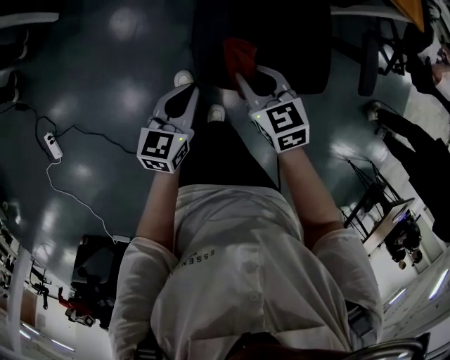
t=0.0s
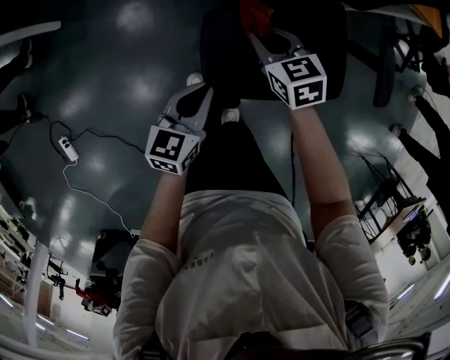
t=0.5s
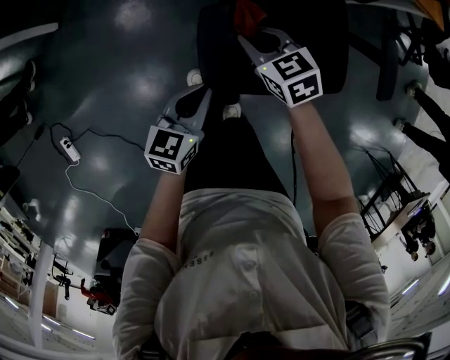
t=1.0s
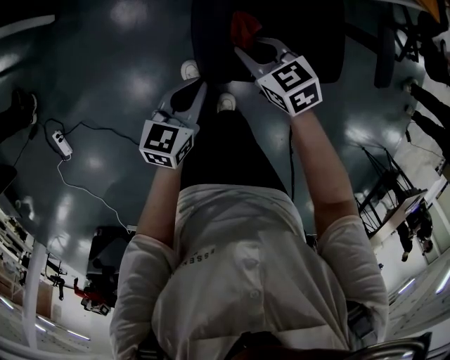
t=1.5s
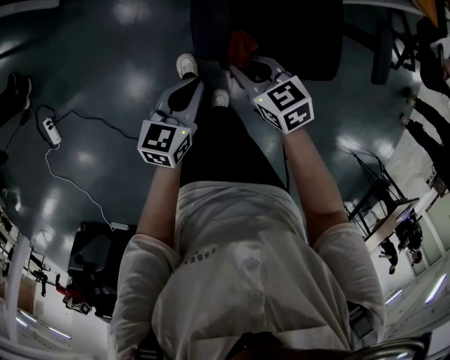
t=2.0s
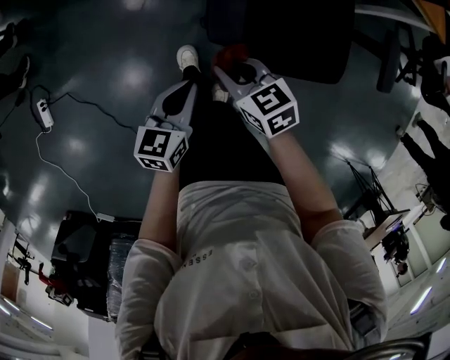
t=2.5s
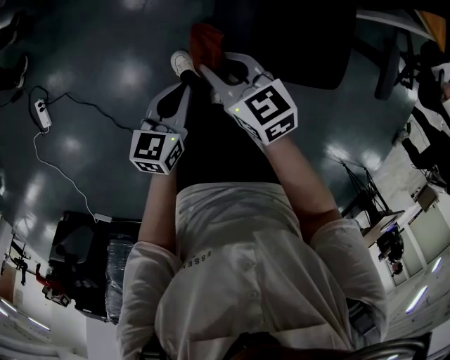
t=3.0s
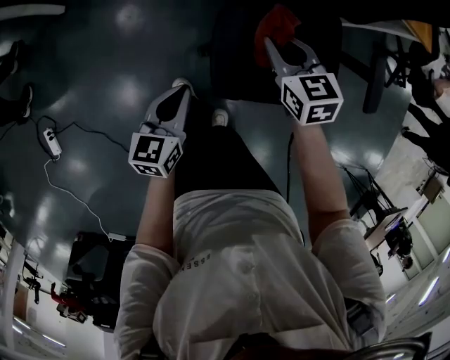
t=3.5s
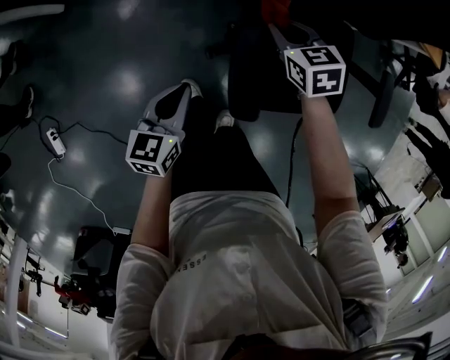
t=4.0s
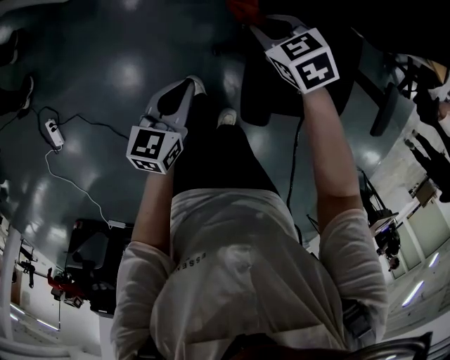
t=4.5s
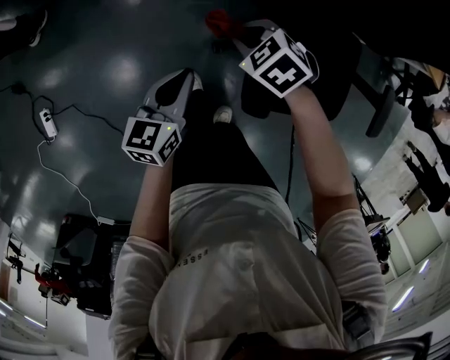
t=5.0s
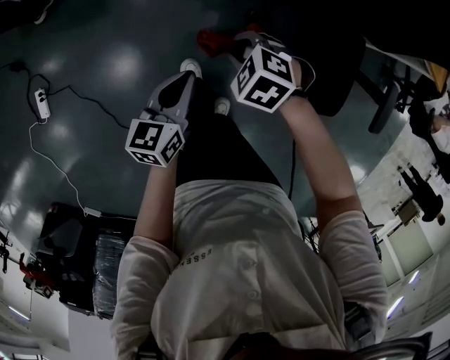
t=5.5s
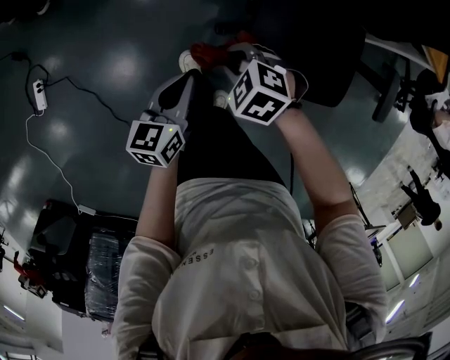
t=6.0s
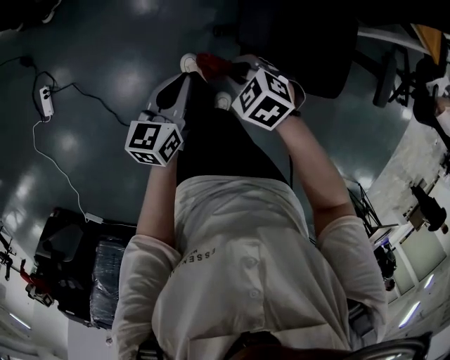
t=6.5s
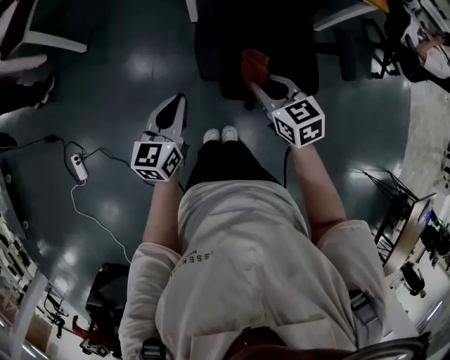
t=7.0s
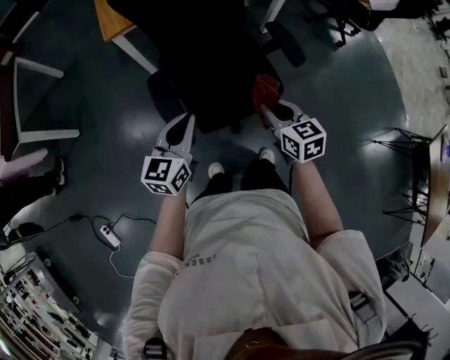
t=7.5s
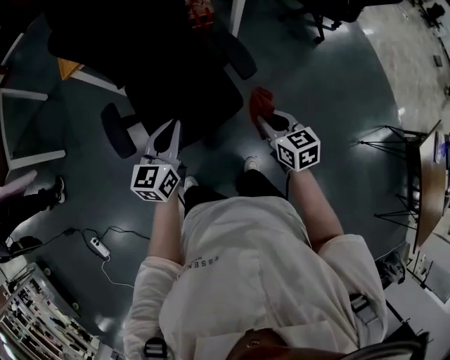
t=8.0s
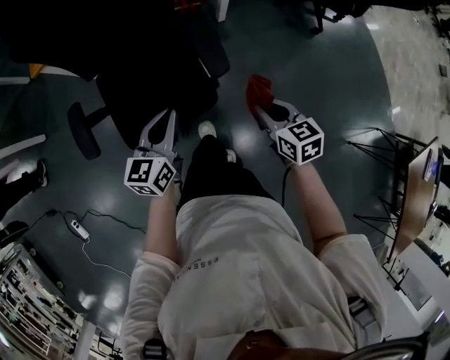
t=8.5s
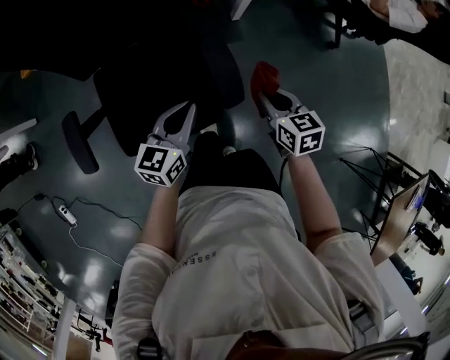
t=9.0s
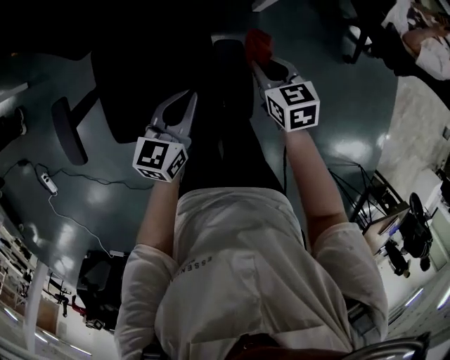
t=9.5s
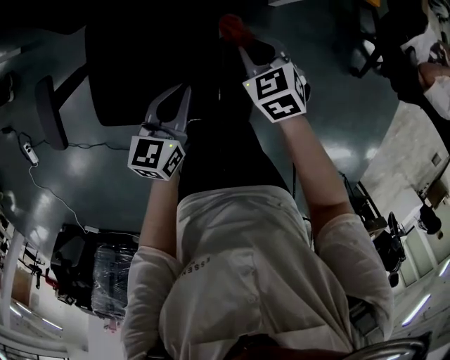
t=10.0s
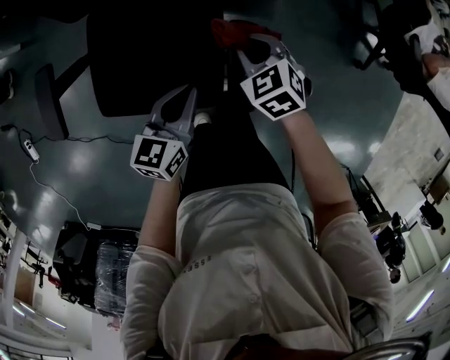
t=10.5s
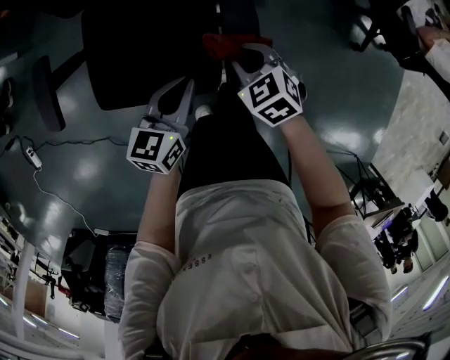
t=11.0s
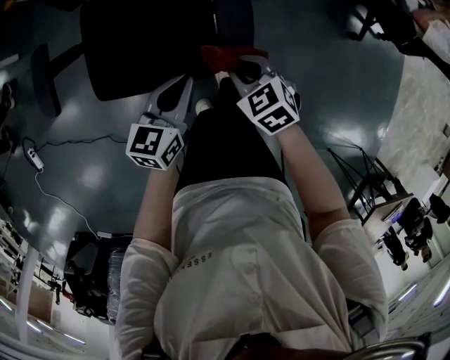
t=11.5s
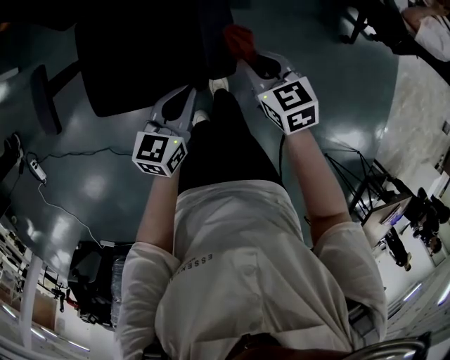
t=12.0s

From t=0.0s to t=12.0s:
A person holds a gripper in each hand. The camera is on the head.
From t=0.0s to t=2.0s: The left gripper heads backward, covering about 5 cm; the right gripper travels downward by approximately 5 cm, and travels forward and back again, about 15 cm each way.
From t=2.0s to t=4.0s: The right gripper heads forward, covering approximately 25 cm. Meanwhile the left gripper shifts roughly 15 cm forward and to the left.
From t=4.0s to t=6.0s: The left gripper changes place by about 15 cm. The right gripper changes place by roughly 30 cm, and rolls counterclockwise, seen from behind, by some 50 degrees.
From t=6.0s to t=8.0s: The right gripper shifts by about 60 cm, and tips its fingers upward by about 30 degrees. Meanwhile the left gripper ends up about 40 cm from where it was, and changes its angle by roughly 40 degrees.
From t=8.0s to t=10.0s: The right gripper shifts about 40 cm forward and downward, and rotates around the line of its fingers by roughly 40 degrees, counterclockwise from behind; the left gripper is displaced forward, downward and to the right by roughly 30 cm, and rotates approximately 30 degrees.
From t=10.0s to t=12.0s: The two grippers go approximately 15 cm backward. The right gripper swivels about 20 degrees.

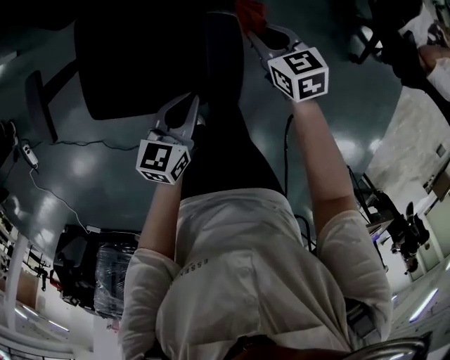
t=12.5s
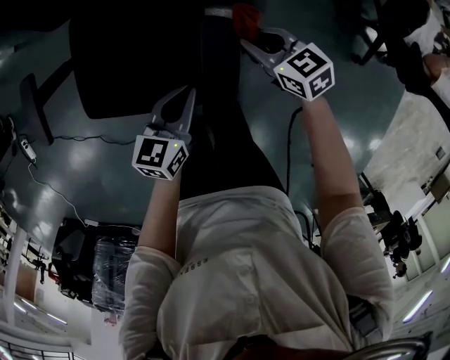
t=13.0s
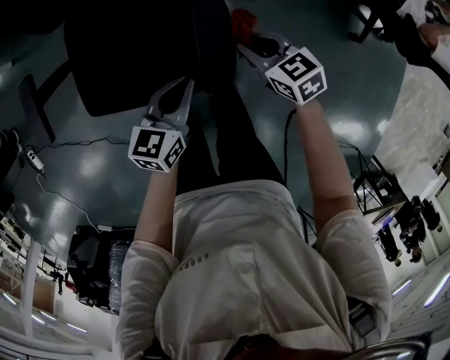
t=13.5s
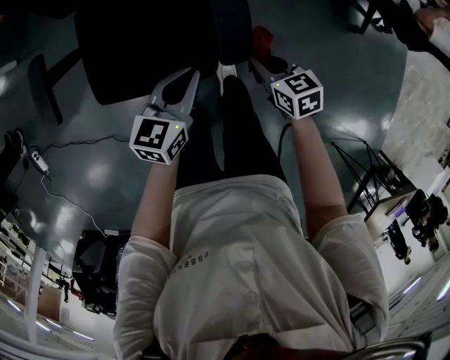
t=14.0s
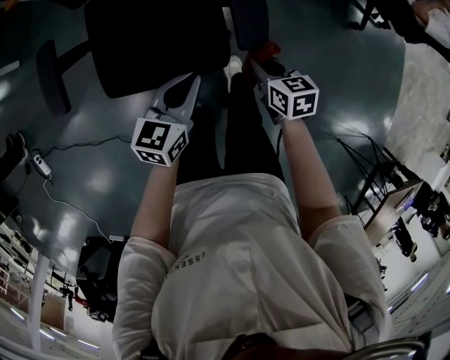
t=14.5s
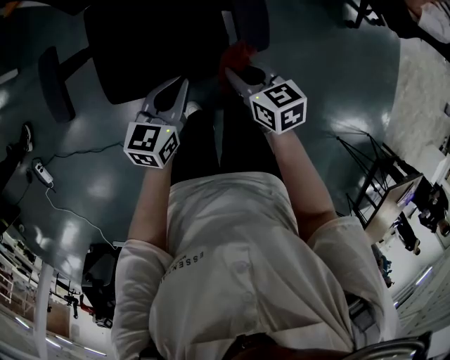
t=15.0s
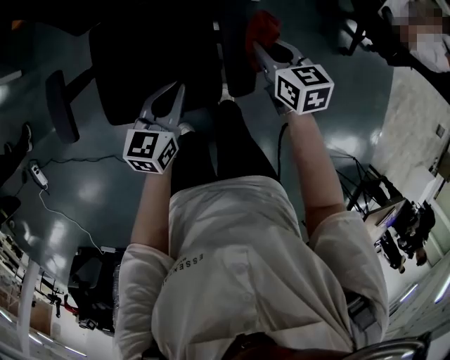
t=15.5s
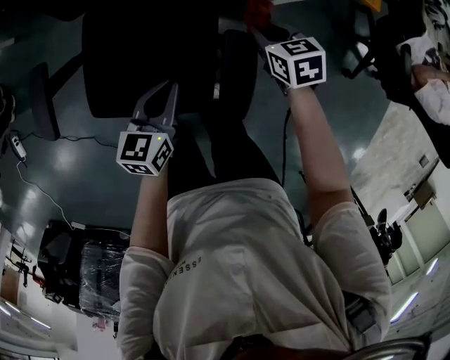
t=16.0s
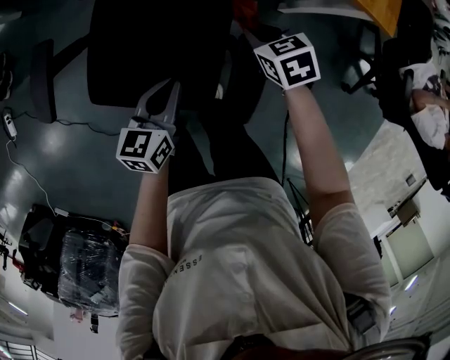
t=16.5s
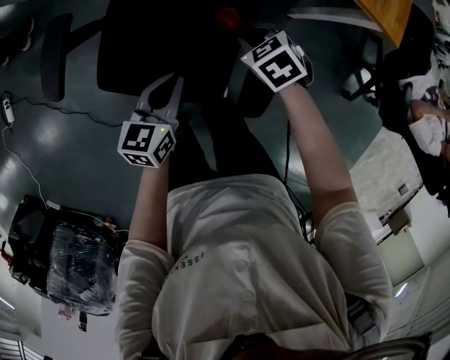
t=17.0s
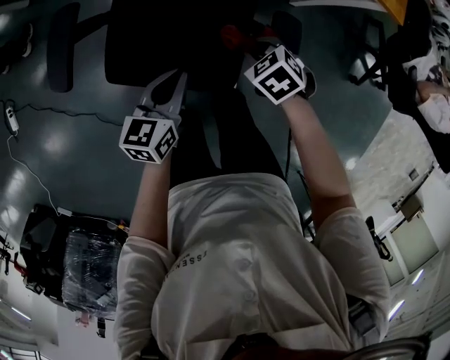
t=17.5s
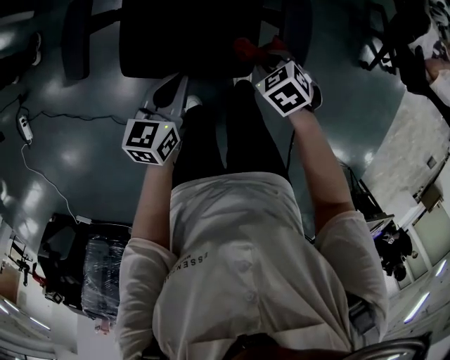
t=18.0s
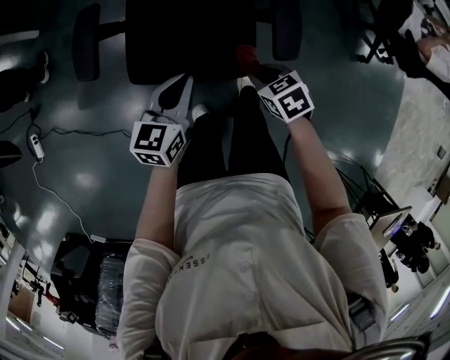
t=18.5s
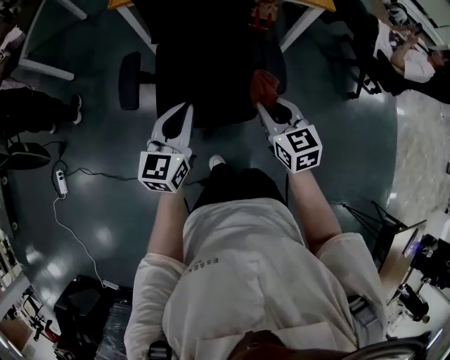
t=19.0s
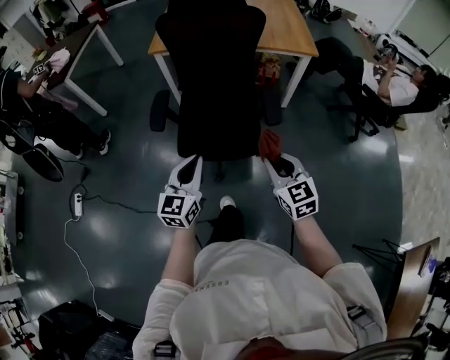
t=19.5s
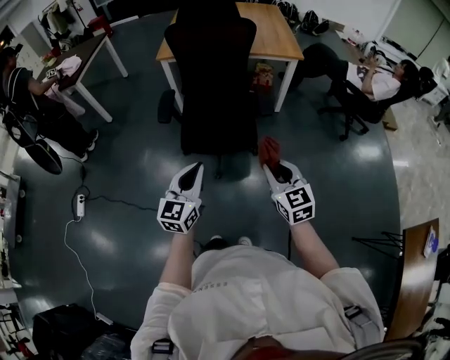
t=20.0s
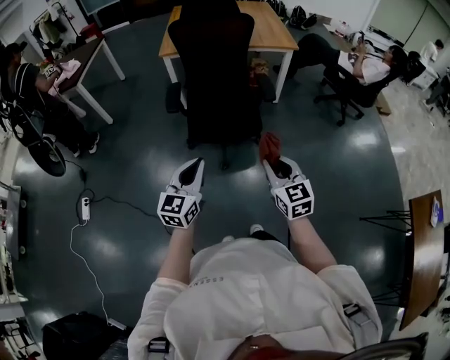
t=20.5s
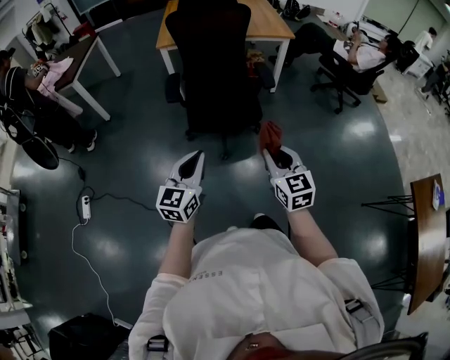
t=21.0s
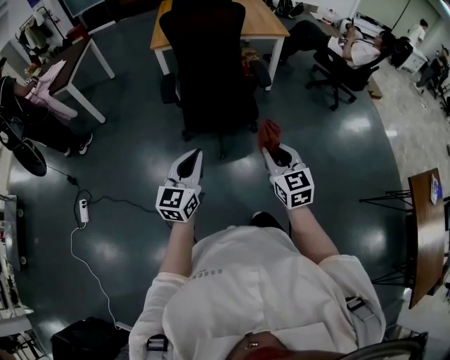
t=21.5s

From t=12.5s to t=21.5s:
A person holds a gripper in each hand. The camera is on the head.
From t=12.5s to t=14.5s: The right gripper goes about 20 cm backward, and turns by about 20 degrees. Meanwhile the left gripper goes approximately 10 cm to the left and backward.
From t=14.5s to t=17.0s: The right gripper goes upward and returns, roughly 10 cm each way, and rolls counterclockwise, seen from behind, by some 50 degrees, while the left gripper shifts by approximately 15 cm, and swivels about 30 degrees.
From t=17.0s to t=19.5s: The left gripper moves backward, upward and to the left, roughly 40 cm, and changes its angle by about 30 degrees, while the right gripper moves backward and upward, approximately 50 cm, and tilts its fingers about 40 degrees upward.
From t=19.5s to t=21.5s: The grippers both shift backward by about 25 cm.

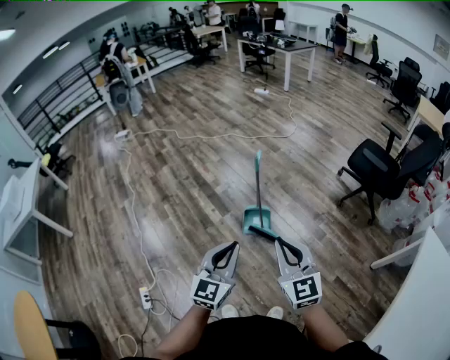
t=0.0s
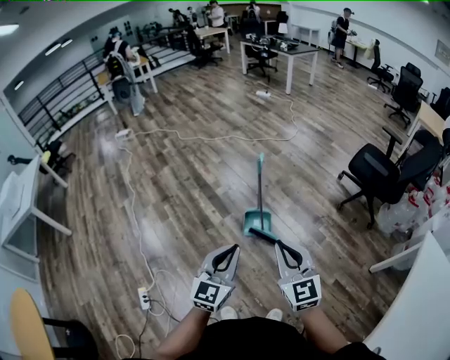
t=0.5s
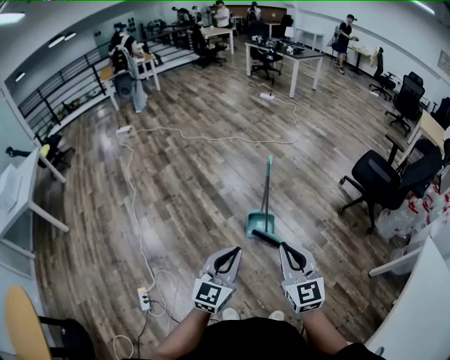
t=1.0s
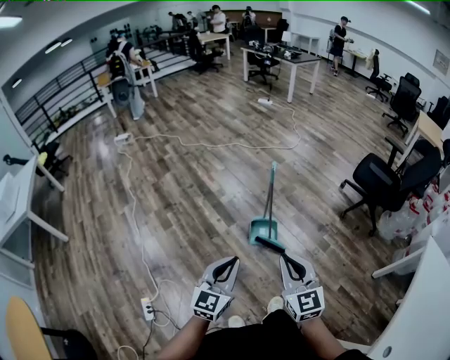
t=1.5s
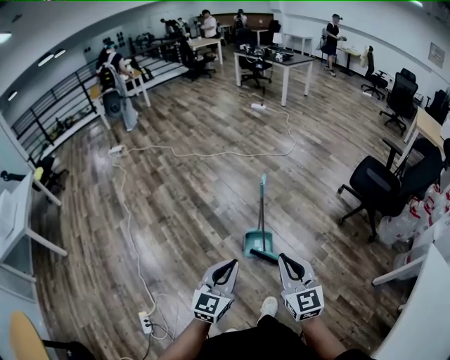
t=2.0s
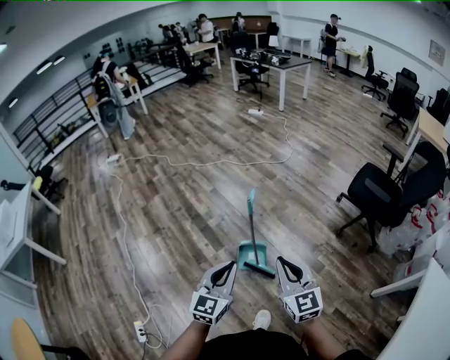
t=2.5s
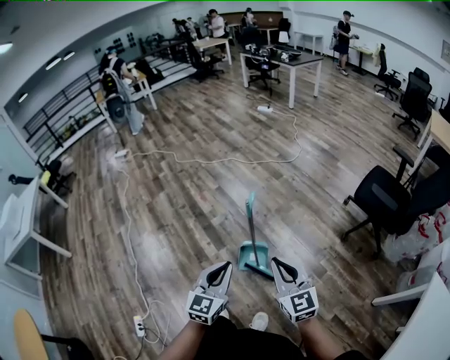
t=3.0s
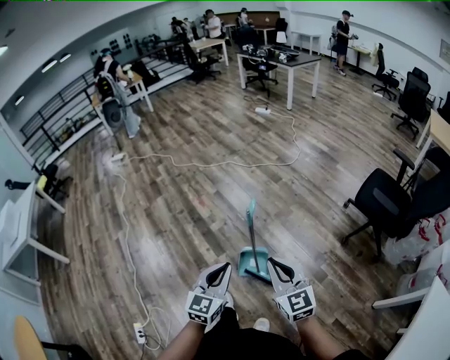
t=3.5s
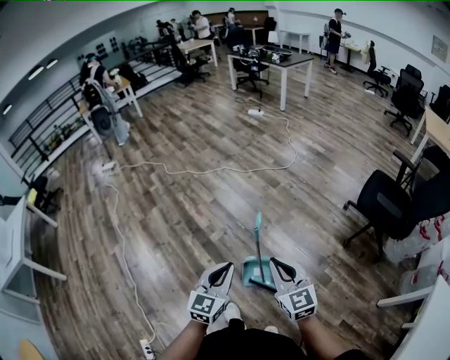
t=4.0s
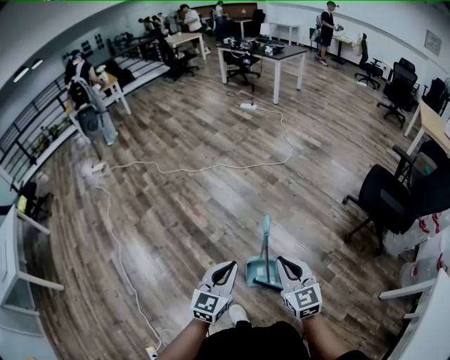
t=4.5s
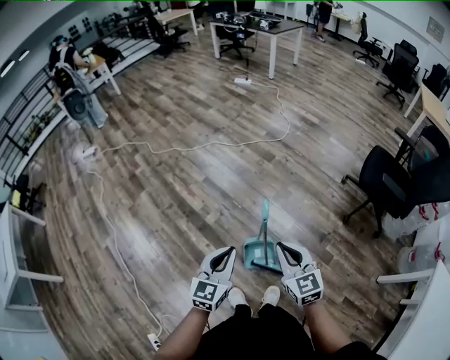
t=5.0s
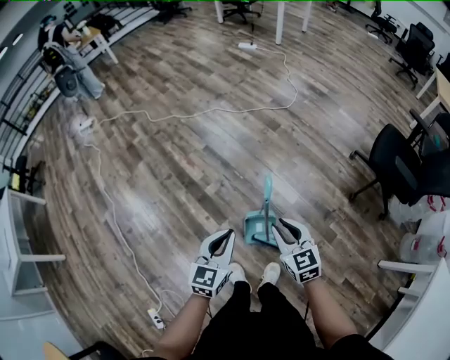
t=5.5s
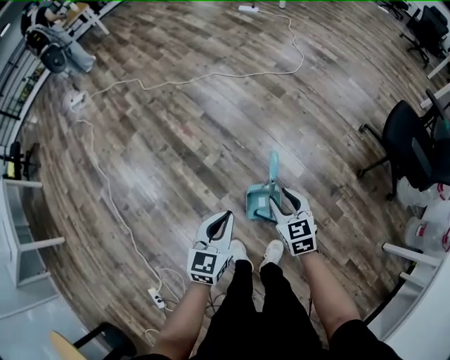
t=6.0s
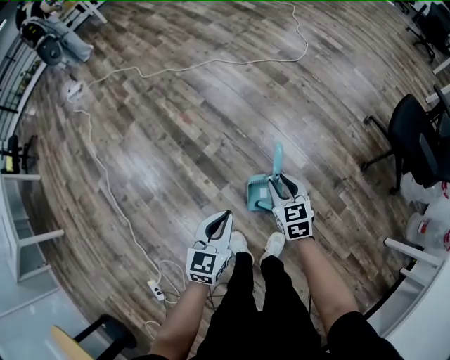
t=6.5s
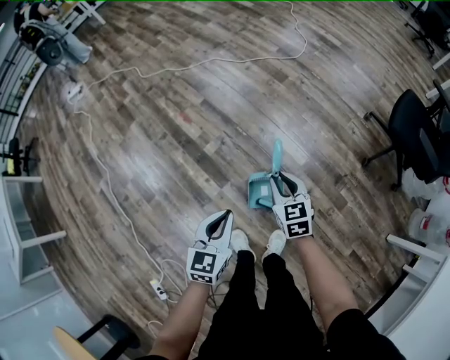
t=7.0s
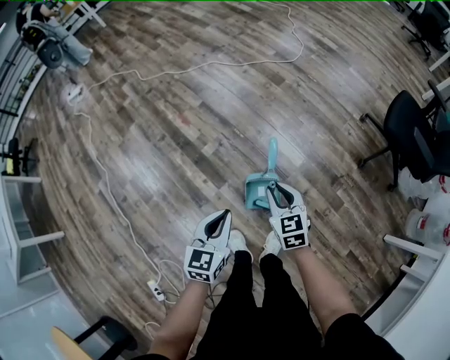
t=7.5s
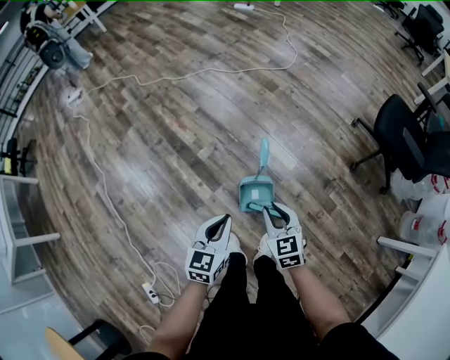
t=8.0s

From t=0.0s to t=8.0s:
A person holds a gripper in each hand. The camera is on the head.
From t=0.0s to t=2.0s: Both grippers travel together forward, some 10 cm.
From t=2.0s to t=4.0s: Both grippers move forward, some 25 cm.
From t=4.0s to t=6.0s: The left gripper shifts approximately 15 cm downward and forward. Meanwhile the right gripper moves downward and forward, about 25 cm, rotates approximately 30 degrees, and opens its fingers.
From t=6.0s to t=8.0s: The two grippers go about 10 cm backward.
